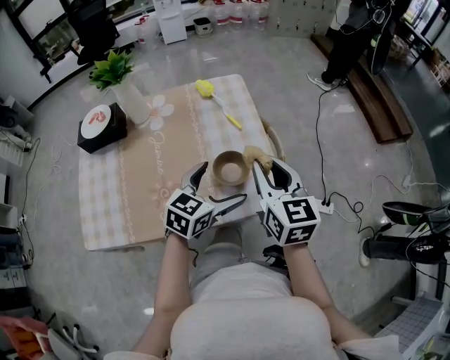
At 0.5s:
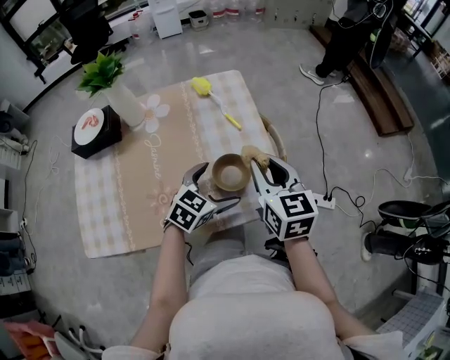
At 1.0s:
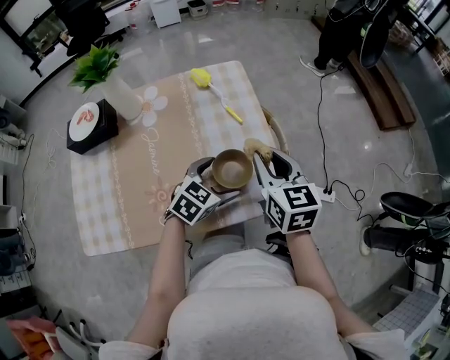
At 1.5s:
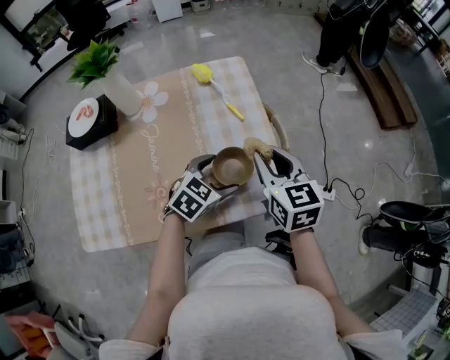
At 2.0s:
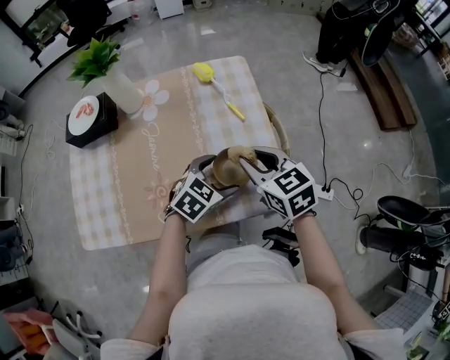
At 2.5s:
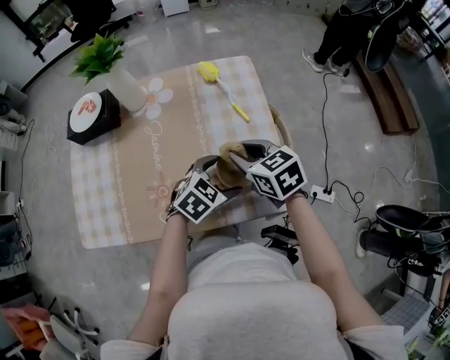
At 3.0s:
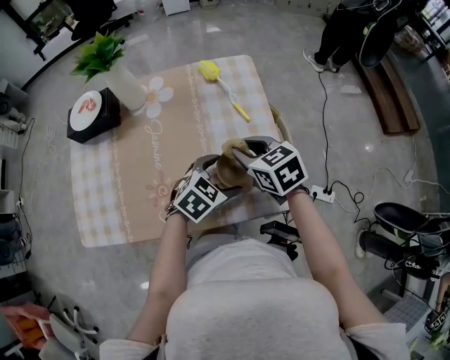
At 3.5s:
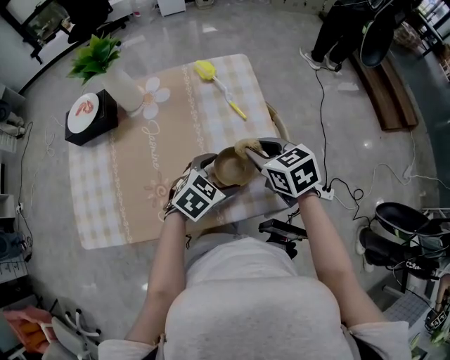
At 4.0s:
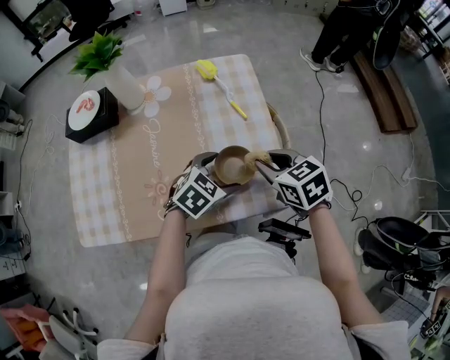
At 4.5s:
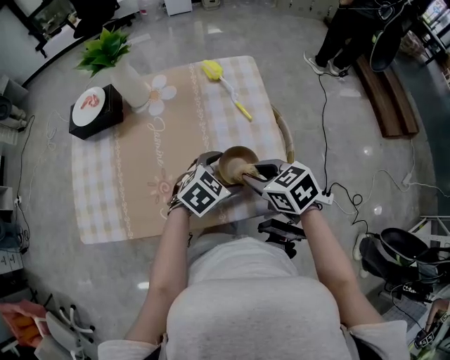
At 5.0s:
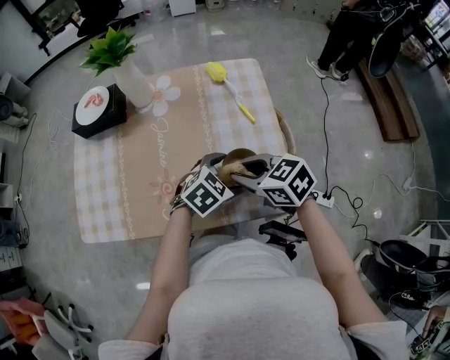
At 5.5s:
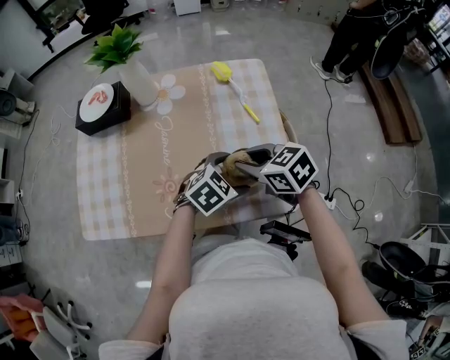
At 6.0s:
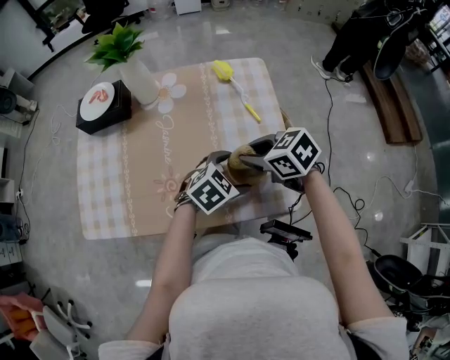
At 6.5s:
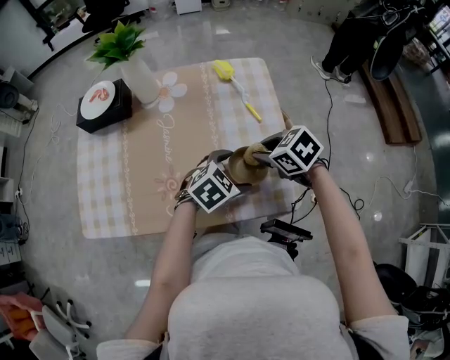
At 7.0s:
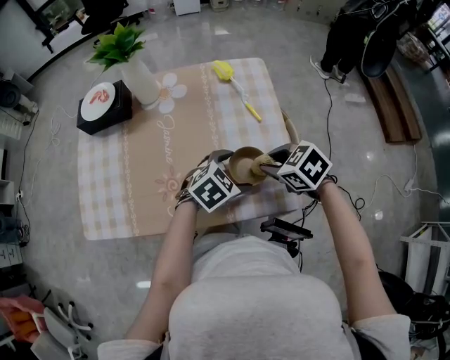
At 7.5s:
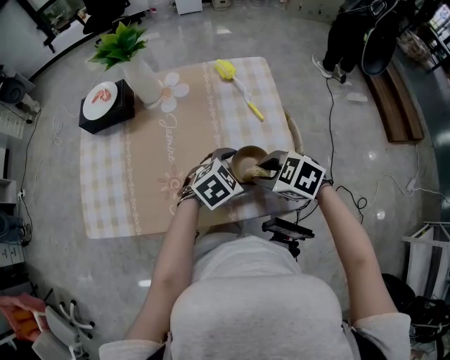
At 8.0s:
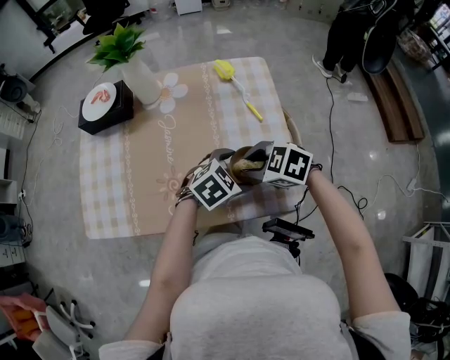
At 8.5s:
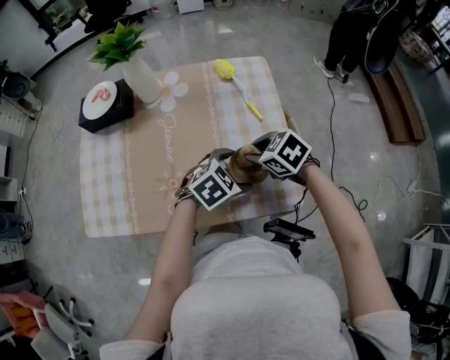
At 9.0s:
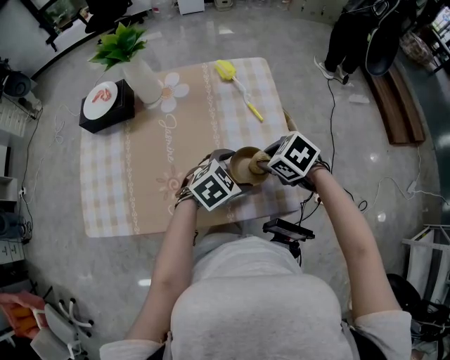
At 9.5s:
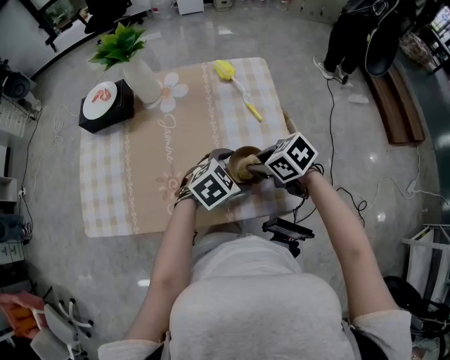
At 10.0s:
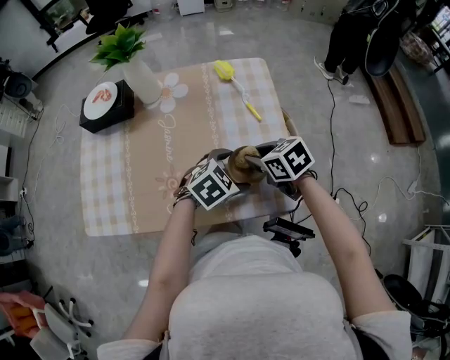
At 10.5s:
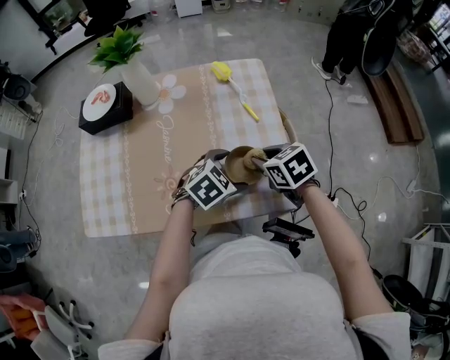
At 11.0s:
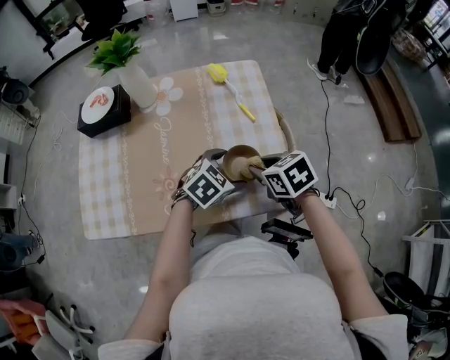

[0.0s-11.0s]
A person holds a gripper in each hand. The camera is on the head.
0.0s to 2.0s: The right gripper is displaced downward and to the left by approximately 10 cm, and rotates approximately 30 degrees. Meanwhile the left gripper goes some 10 cm downward, and changes its angle by roughly 20 degrees.
2.0s to 3.5s: The grippers move only a little.
3.5s to 5.5s: The right gripper ends up some 10 cm from where it was, and changes its angle by about 20 degrees.
5.5s to 7.5s: The right gripper ends up approximately 5 cm from where it was, and rotates approximately 30 degrees.
7.5s to 9.0s: The right gripper shifts by some 5 cm.
9.0s to 11.0s: The right gripper changes its angle by roughly 20 degrees.

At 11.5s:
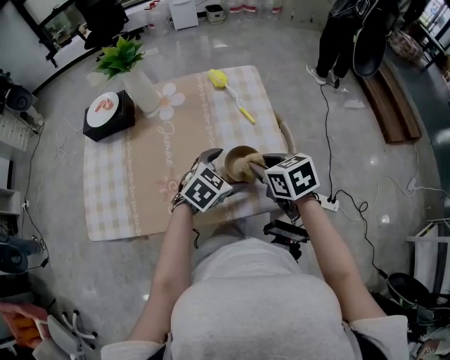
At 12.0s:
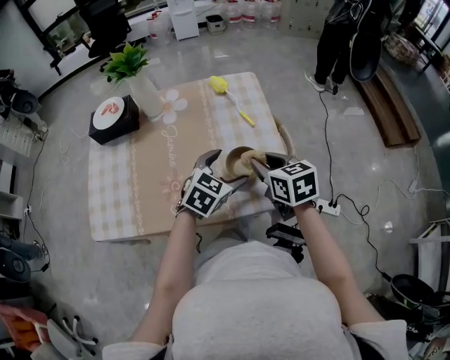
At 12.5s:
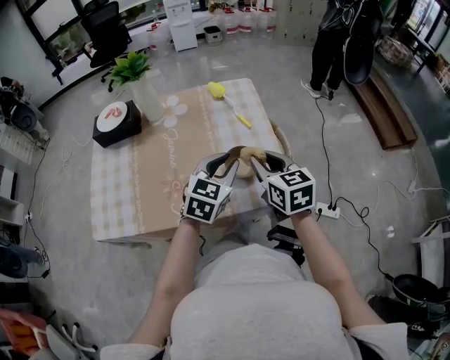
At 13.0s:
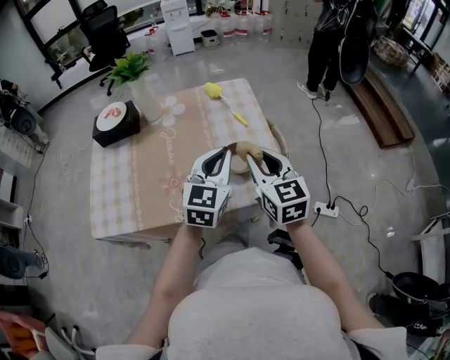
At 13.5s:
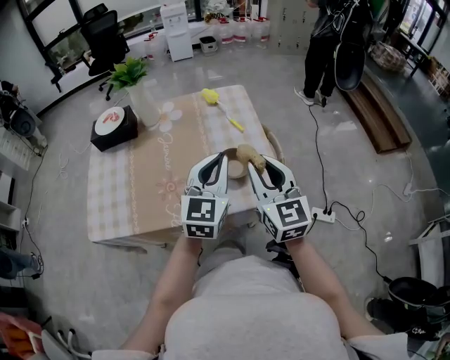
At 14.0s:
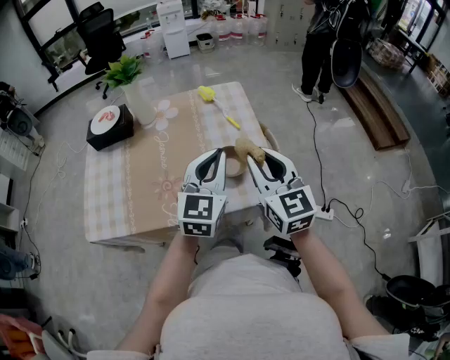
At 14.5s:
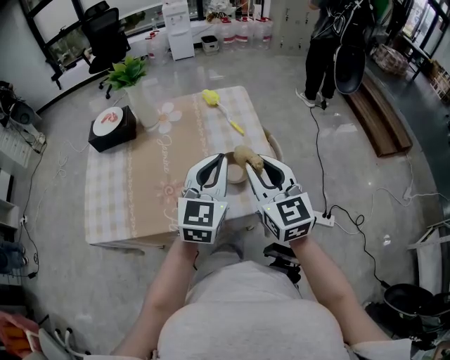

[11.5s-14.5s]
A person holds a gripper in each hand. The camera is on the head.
11.5s to 13.0s: The right gripper moves upward and backward, roughly 10 cm, and points its fingers some 30 degrees further upward, while the left gripper shifts approximately 15 cm upward, tips its fingers upward by about 30 degrees, and closes.
13.0s to 14.5s: The grippers stay close to where they were, moving slightly.

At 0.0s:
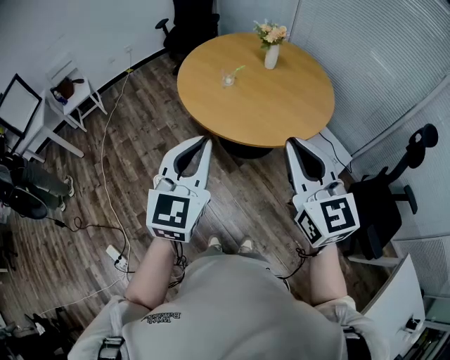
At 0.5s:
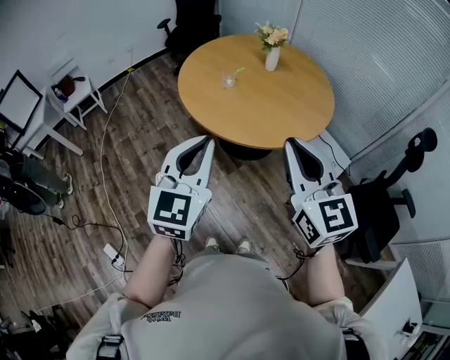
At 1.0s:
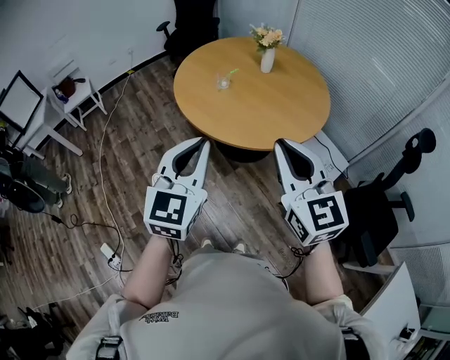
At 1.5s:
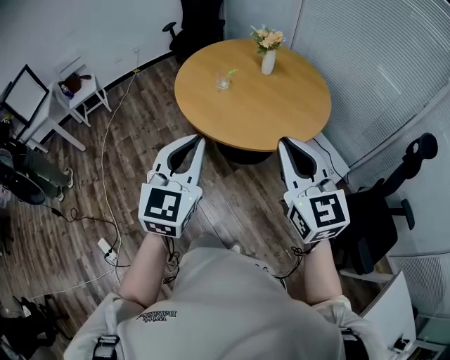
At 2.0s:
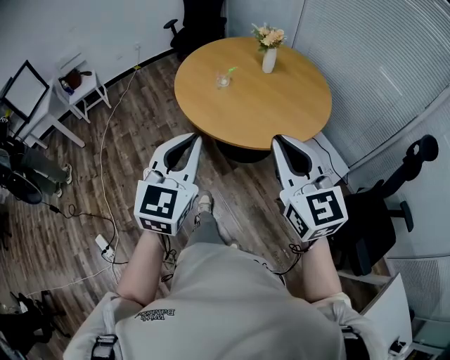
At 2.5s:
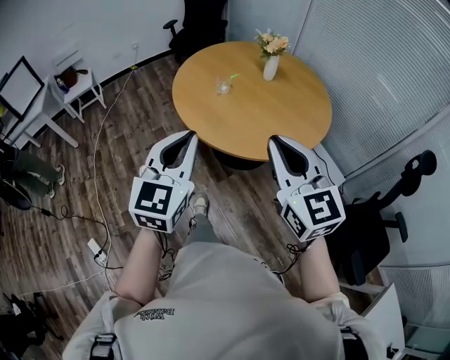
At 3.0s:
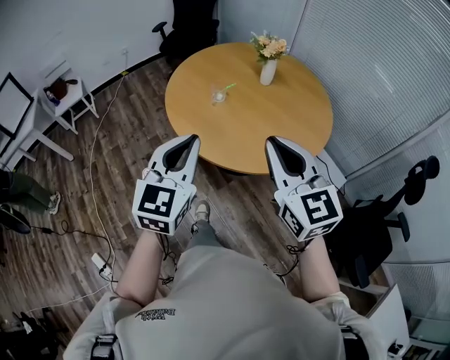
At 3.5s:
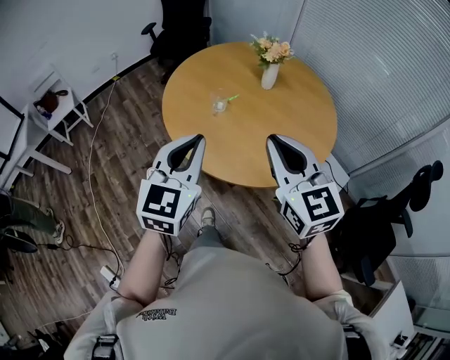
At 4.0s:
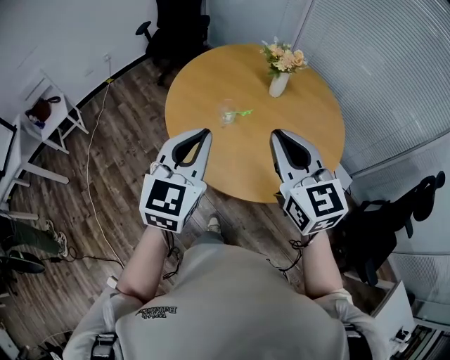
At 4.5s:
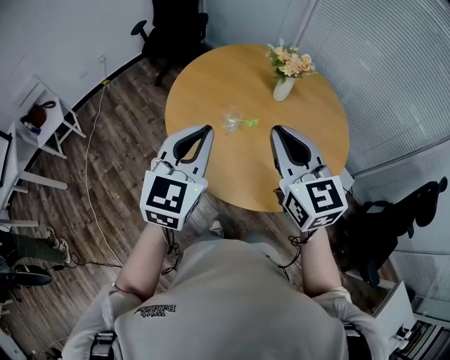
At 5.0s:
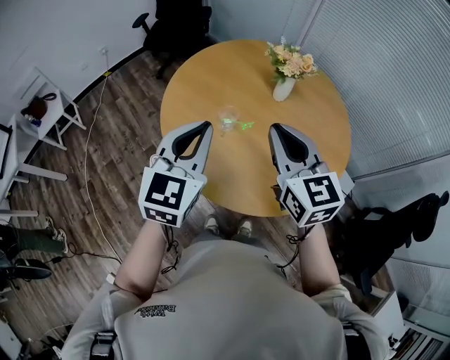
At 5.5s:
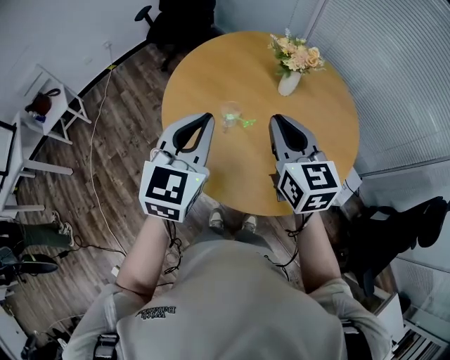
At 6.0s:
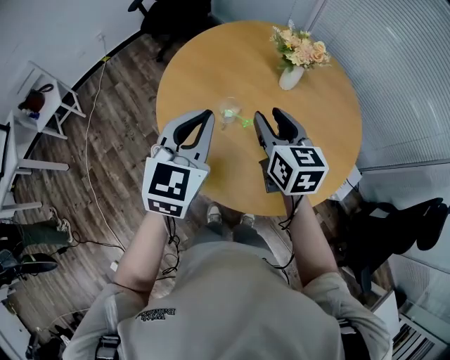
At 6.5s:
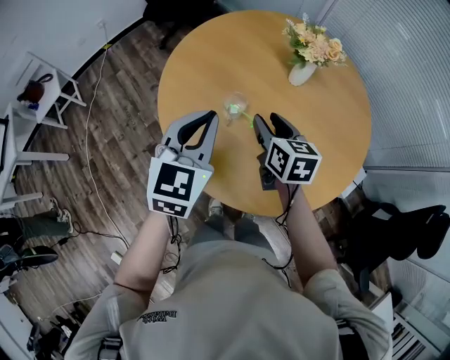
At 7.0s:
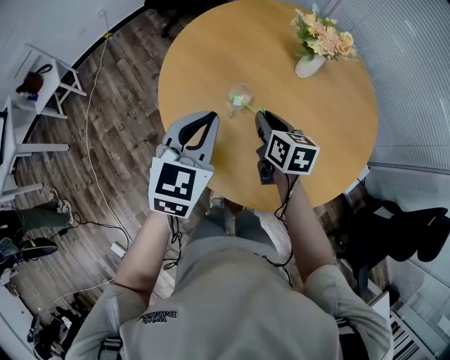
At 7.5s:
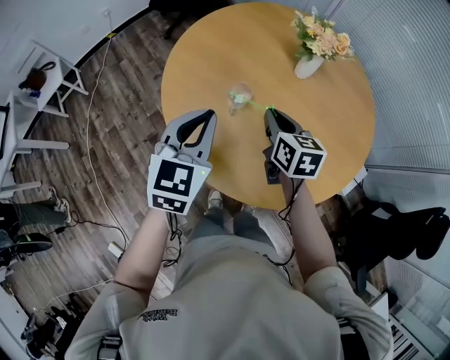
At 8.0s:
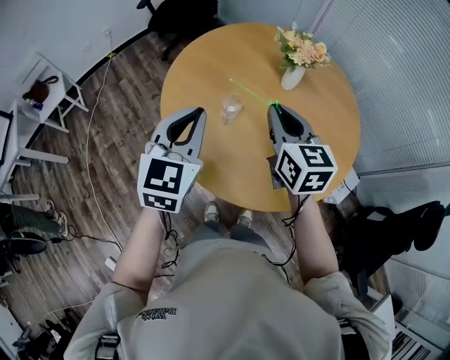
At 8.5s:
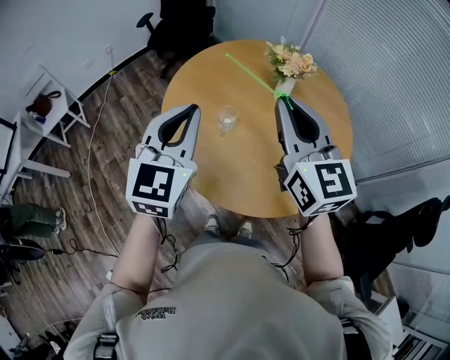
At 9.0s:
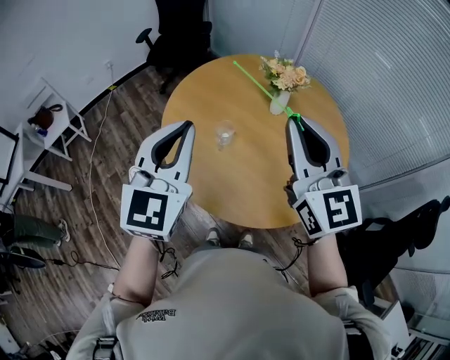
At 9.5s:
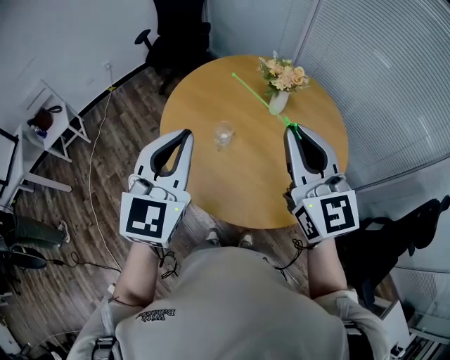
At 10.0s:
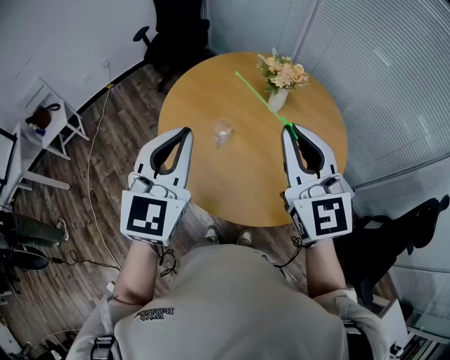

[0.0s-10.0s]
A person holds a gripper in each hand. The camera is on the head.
0.0s to 2.0s: Both grippers move to the right, about 5 cm.
2.0s to 4.0s: Both grippers travel together forward, about 35 cm.
4.0s to 6.0s: The right gripper goes roughly 25 cm forward and downward, turns by some 20 degrees, and opens up; the left gripper shifts roughly 15 cm forward.
6.0s to 8.0s: The left gripper travels downward and back again, about 5 cm each way. The right gripper reaches about 15 cm downward, then returns, and closes its fingers.
8.0s to 10.0s: The left gripper heads upward, covering about 10 cm. The right gripper is displaced upward and backward by roughly 15 cm, and rotates approximately 30 degrees.

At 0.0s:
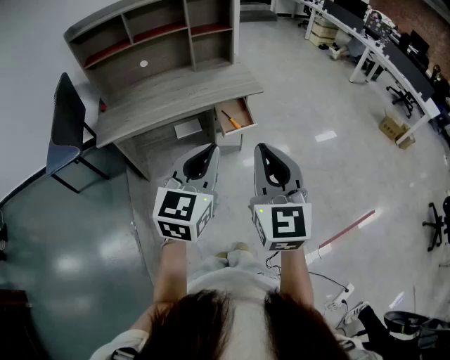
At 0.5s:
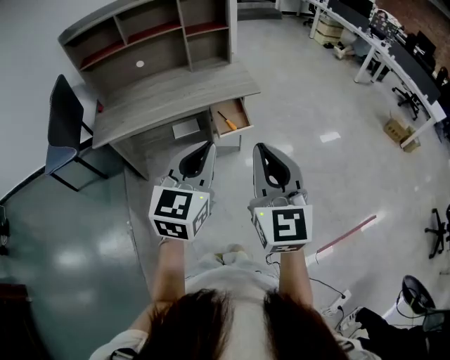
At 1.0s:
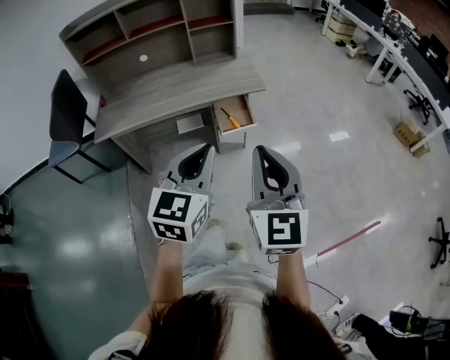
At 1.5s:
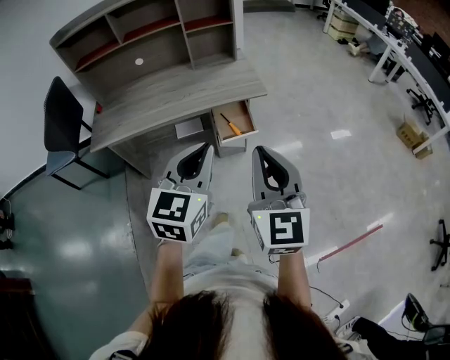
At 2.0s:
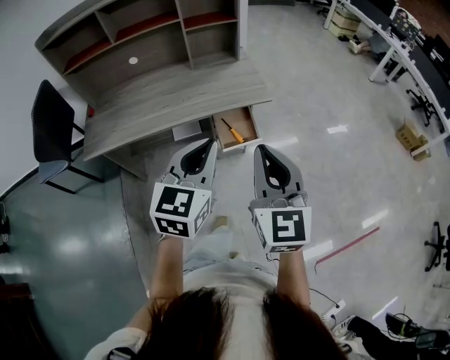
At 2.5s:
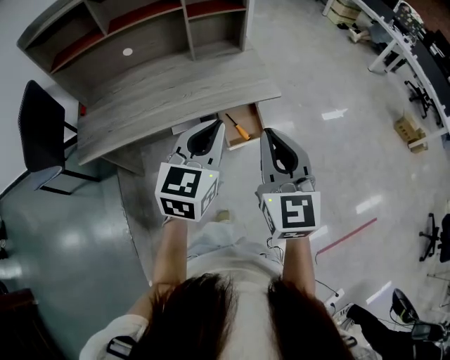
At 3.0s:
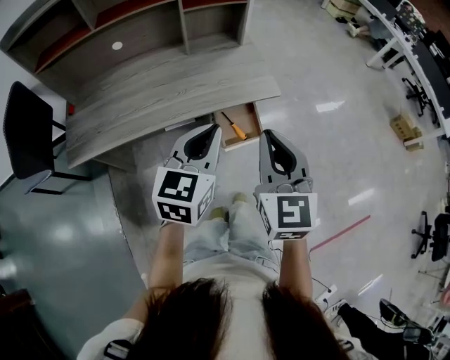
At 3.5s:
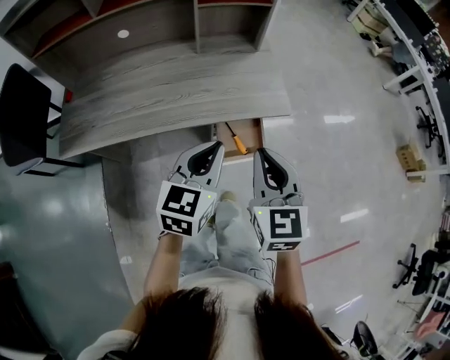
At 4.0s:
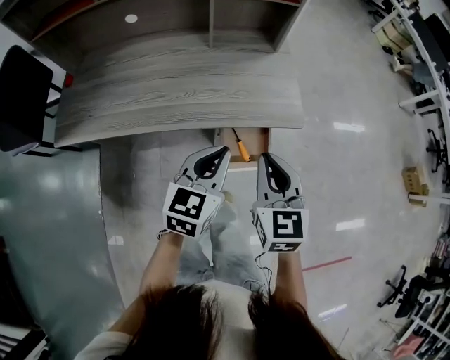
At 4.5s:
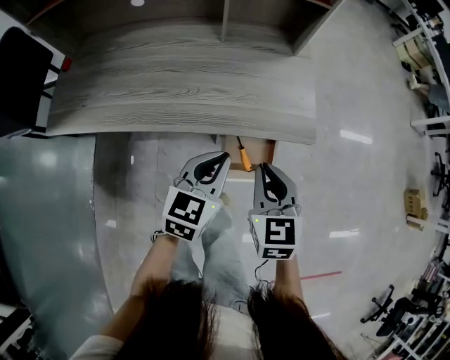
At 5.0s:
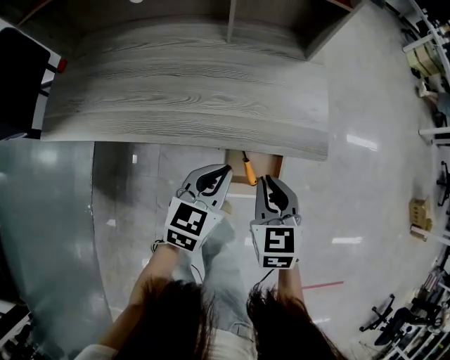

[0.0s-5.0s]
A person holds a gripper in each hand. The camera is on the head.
0.0s to 2.5s: The two grippers go about 30 cm forward.
2.5s to 5.0s: The grippers both shift downward and forward by roughly 35 cm. The right gripper points its fingers roughly 30 degrees further downward; the left gripper swivels some 20 degrees.
